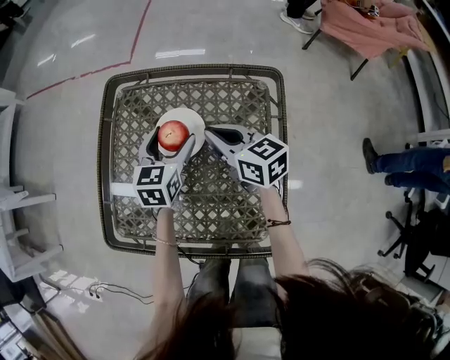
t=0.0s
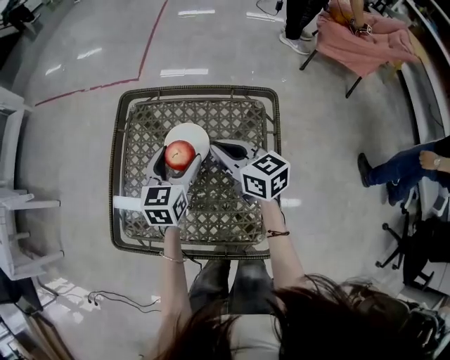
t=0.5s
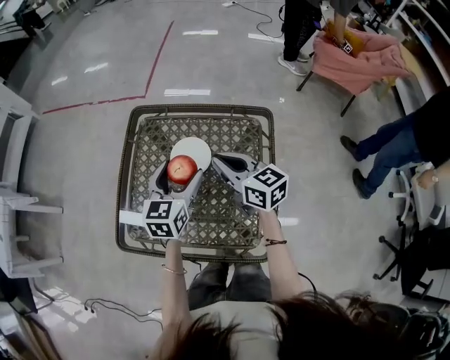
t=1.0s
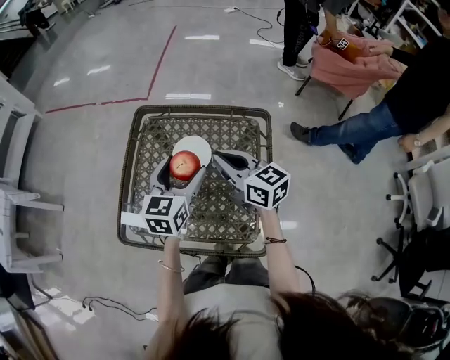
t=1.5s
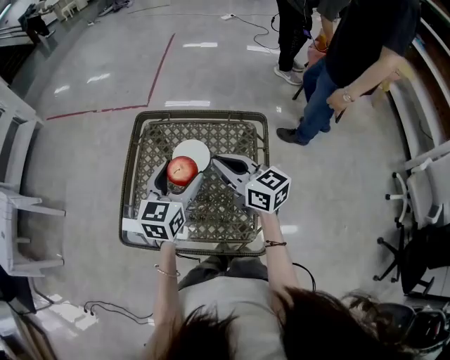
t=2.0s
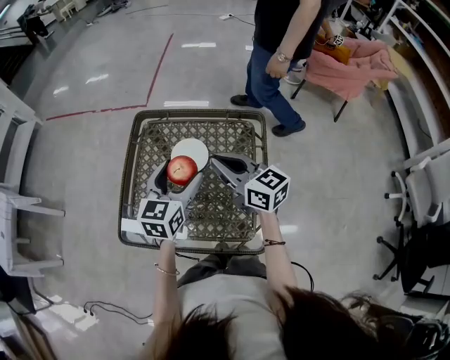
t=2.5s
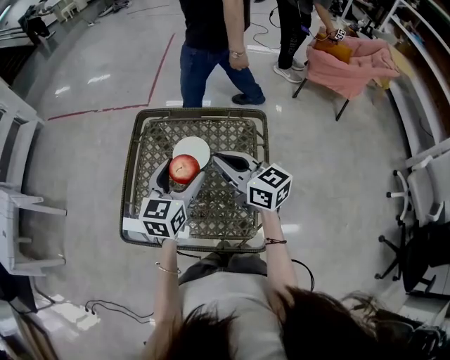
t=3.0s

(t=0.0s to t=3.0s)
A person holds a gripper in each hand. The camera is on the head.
t=0.0s - t=1.5s: Both grippers move upward and backward, approximately 15 cm.
t=1.5s - t=3.0s: The grippers stay close to where they were, moving slightly.

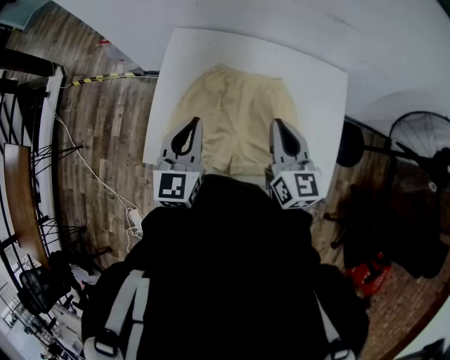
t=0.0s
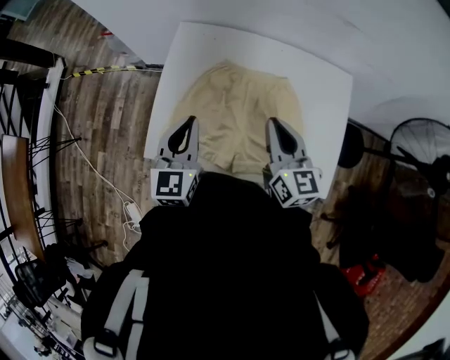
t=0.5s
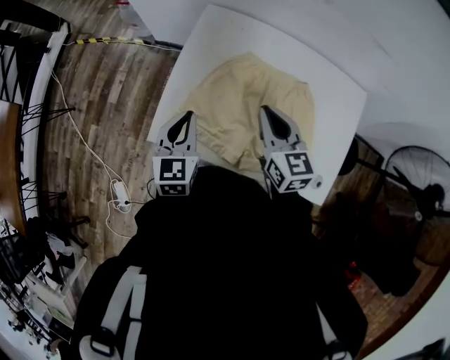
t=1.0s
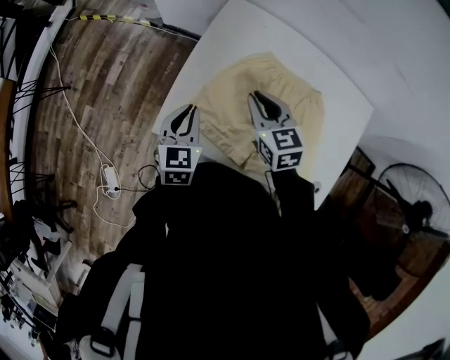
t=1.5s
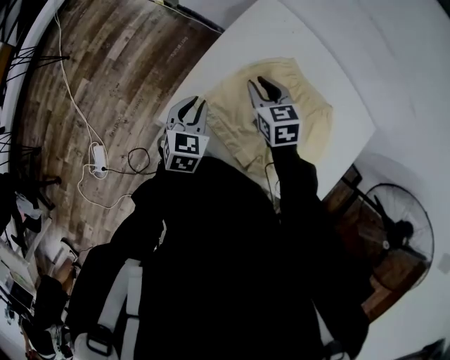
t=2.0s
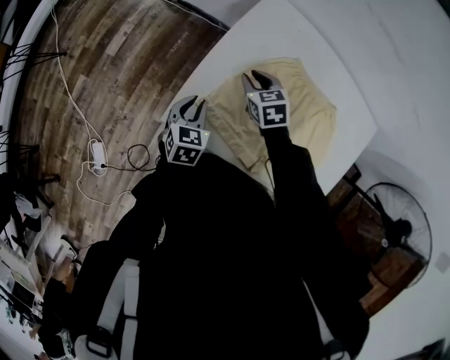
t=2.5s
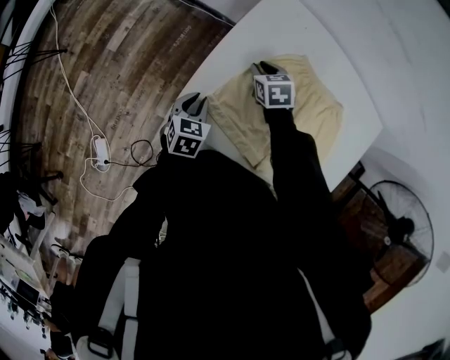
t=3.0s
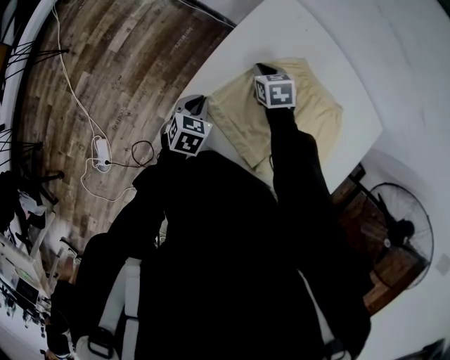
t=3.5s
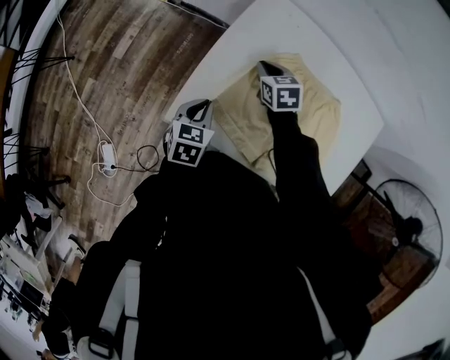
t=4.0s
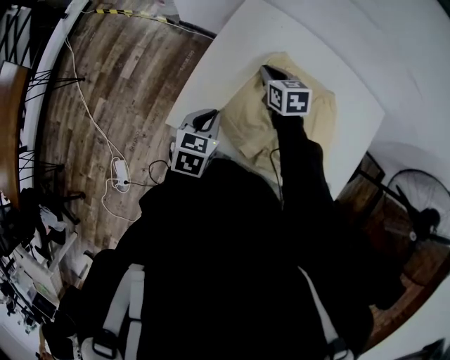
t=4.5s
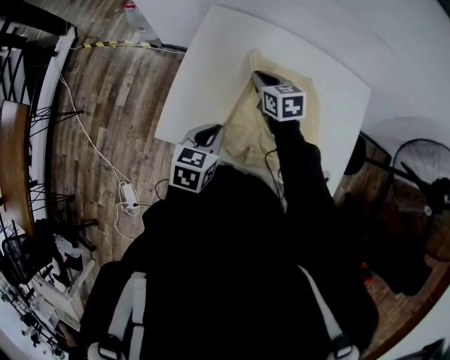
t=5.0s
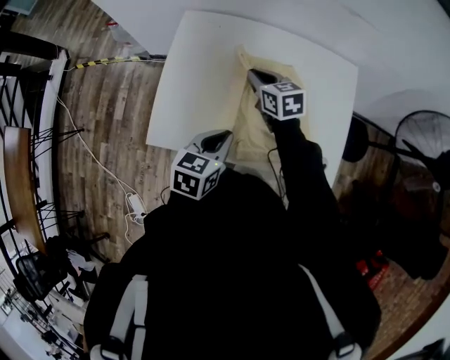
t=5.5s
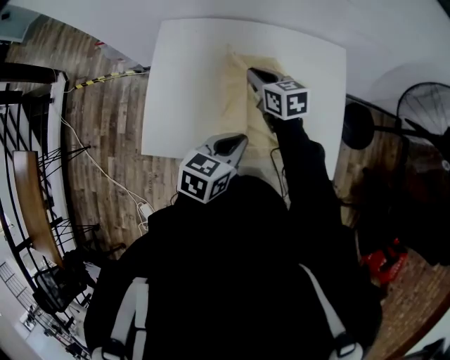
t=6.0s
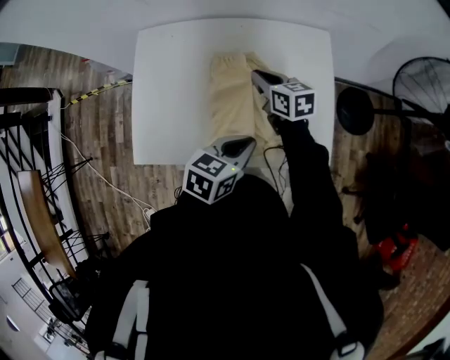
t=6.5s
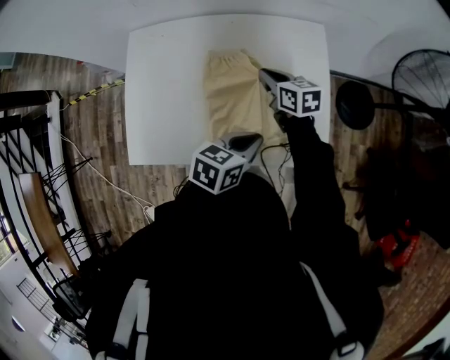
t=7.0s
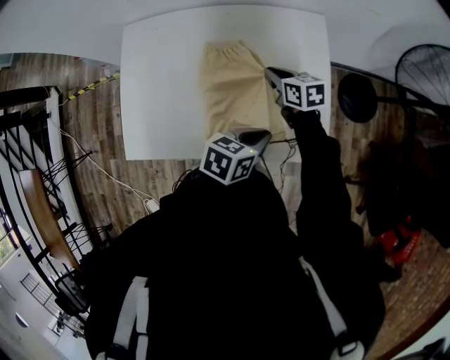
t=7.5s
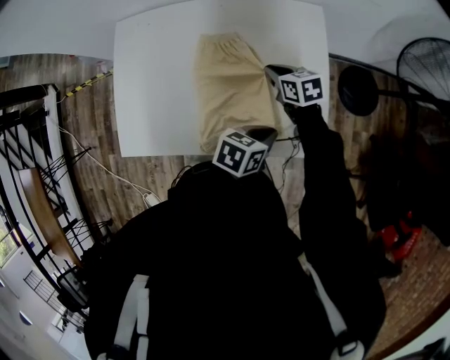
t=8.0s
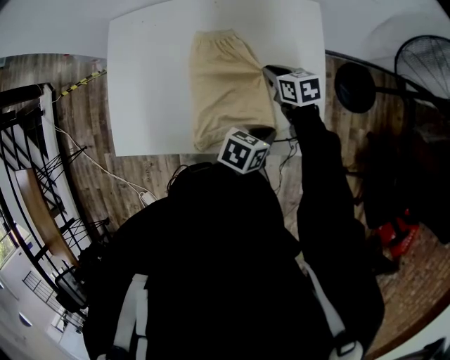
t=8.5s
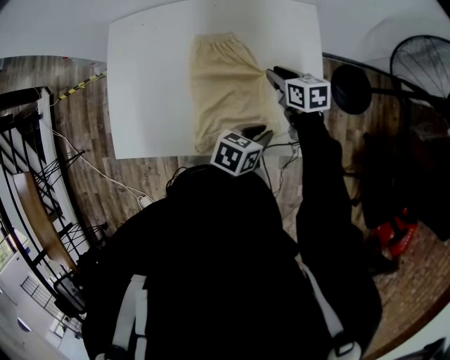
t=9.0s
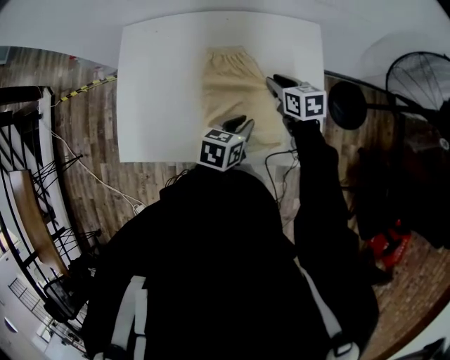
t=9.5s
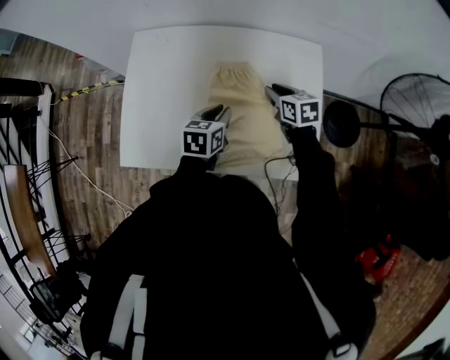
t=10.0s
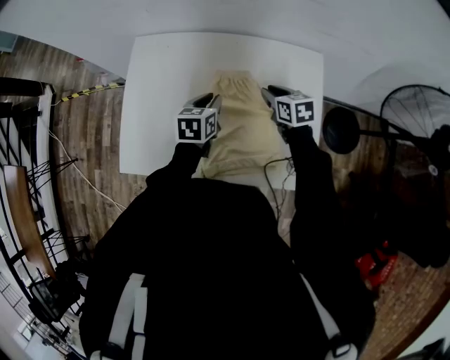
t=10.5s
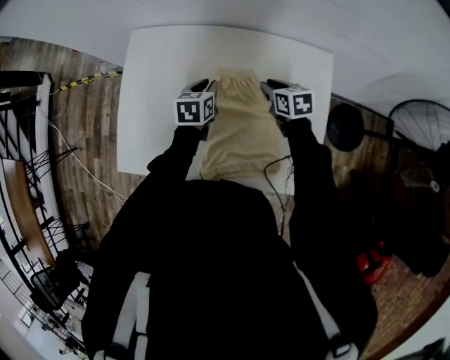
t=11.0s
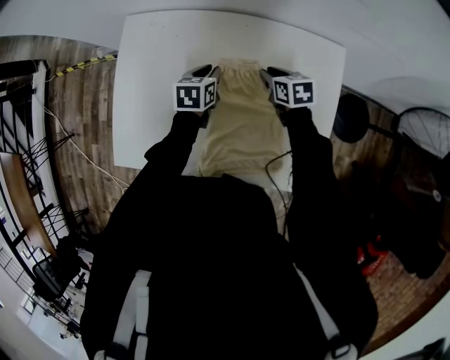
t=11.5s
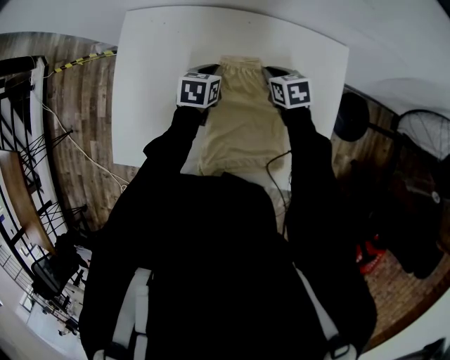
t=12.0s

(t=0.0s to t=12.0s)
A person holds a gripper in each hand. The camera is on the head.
t=0.0s - t=2.0s: The right gripper goes roughly 35 cm to the left, downward and forward, and tips its fingers downward by roughly 40 degrees. The left gripper travels downward and to the left by some 25 cm, and changes its angle by some 30 degrees.
t=2.0s - t=4.0s: The right gripper moves downward, approximately 5 cm, while the left gripper reaches roughly 10 cm downward, then returns.
t=4.0s - t=6.0s: The grippers both shift to the right and upward by about 30 cm. The left gripper changes its angle by approximately 30 degrees; the right gripper swivels approximately 30 degrees.
t=6.0s - t=8.0s: The grippers both shift to the right and downward by approximately 25 cm. The left gripper turns by some 20 degrees.
t=8.0s - t=10.0s: The right gripper moves some 5 cm; the left gripper shifts some 20 cm to the left and forward, and rotates some 30 degrees.
t=10.0s - t=12.0s: Both grippers travel together forward and downward, some 15 cm.

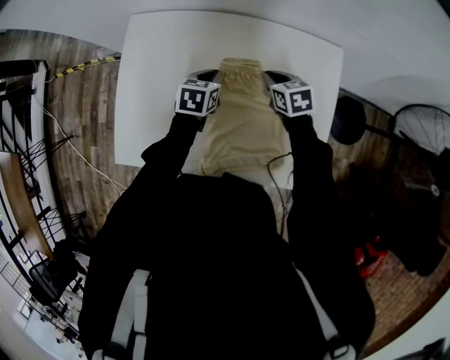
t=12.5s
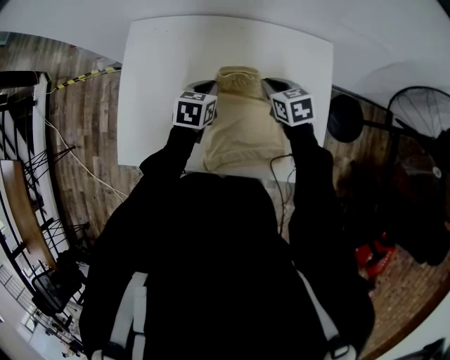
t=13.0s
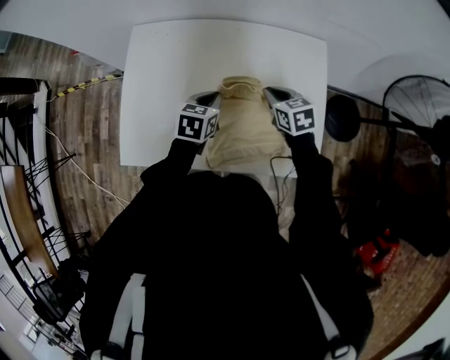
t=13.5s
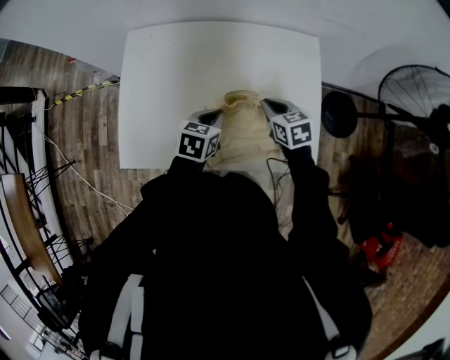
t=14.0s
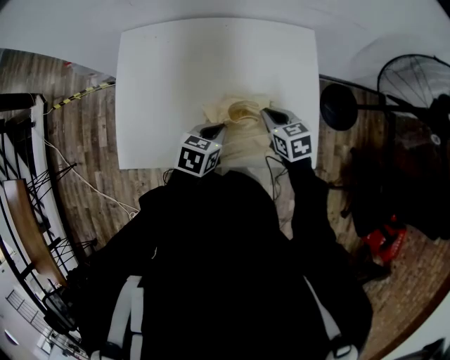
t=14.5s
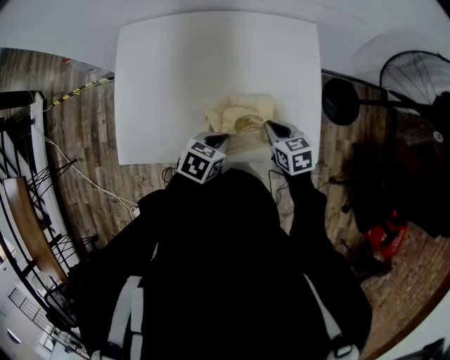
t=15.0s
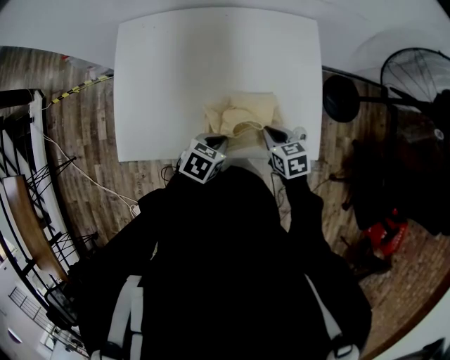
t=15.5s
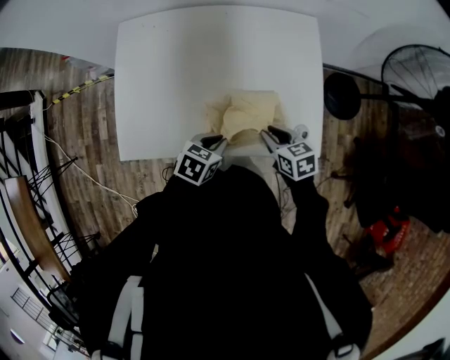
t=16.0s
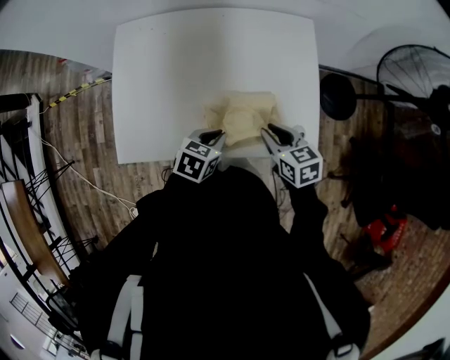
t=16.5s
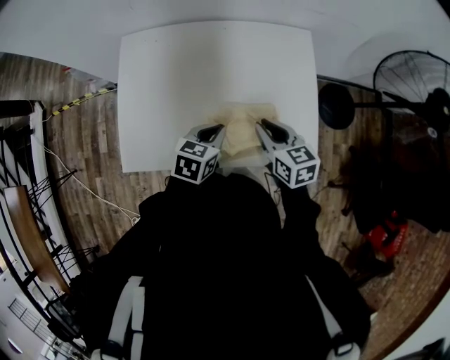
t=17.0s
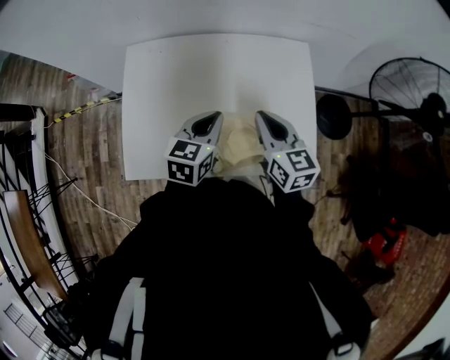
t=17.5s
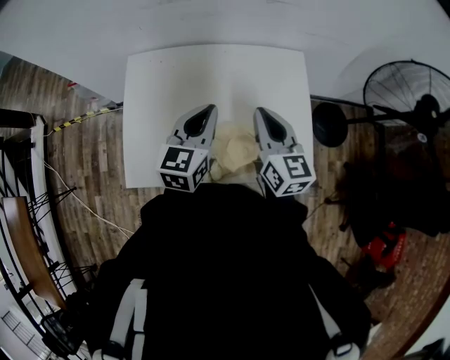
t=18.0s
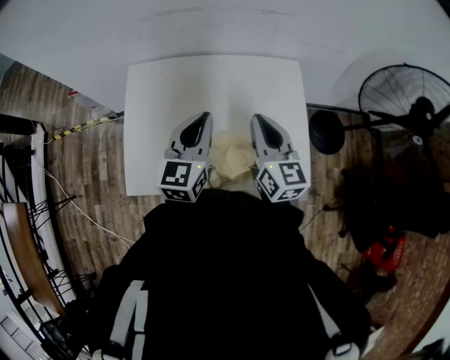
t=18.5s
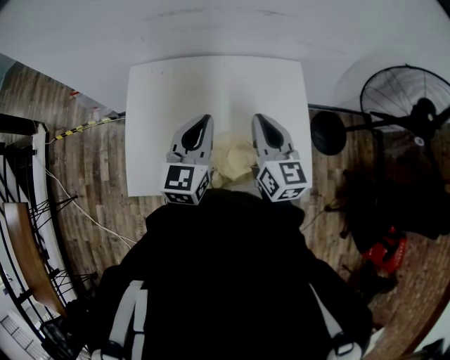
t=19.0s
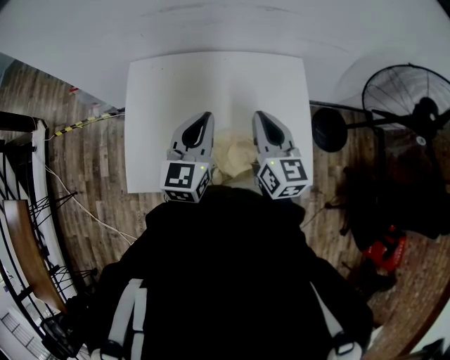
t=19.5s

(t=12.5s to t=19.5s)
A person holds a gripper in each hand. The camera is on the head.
t=12.5s - t=14.5s: Both grippers move backward, roughly 20 cm.
t=14.5s - t=16.0s: Both grippers move backward, roughly 10 cm.
t=16.0s - t=17.5s: The left gripper moves upward and forward, about 20 cm, and turns by some 30 degrees. Meanwhile the right gripper goes about 20 cm upward, forward and to the left, and changes its angle by roughly 30 degrees.
t=17.5s - t=19.5s: The left gripper goes about 10 cm upward, and swivels approximately 20 degrees. Meanwhile the right gripper travels upward by roughly 5 cm.

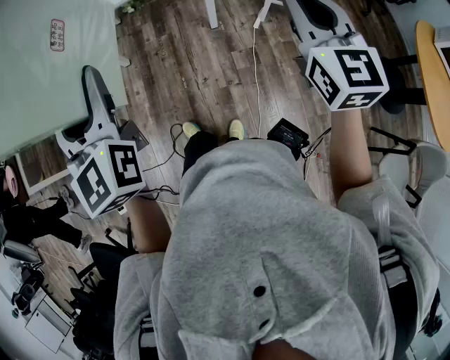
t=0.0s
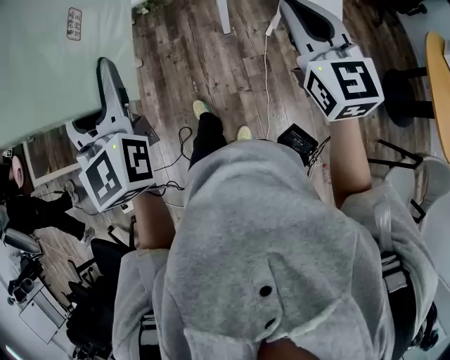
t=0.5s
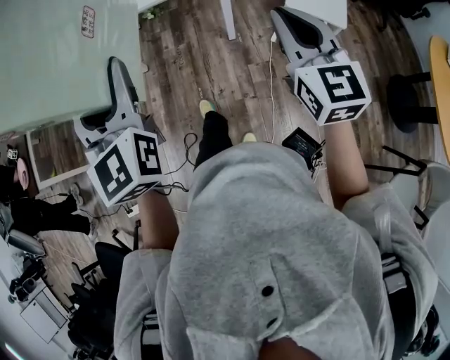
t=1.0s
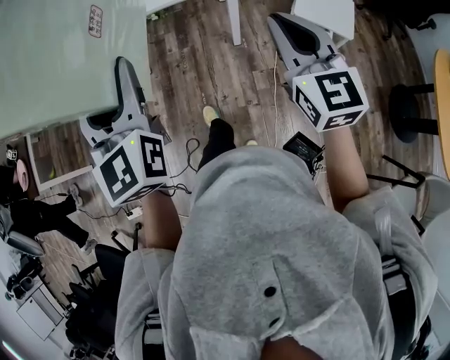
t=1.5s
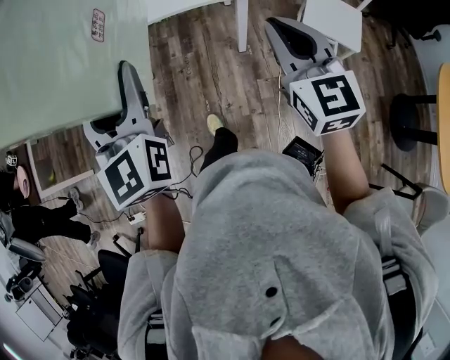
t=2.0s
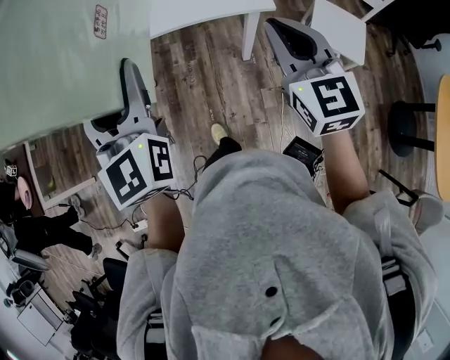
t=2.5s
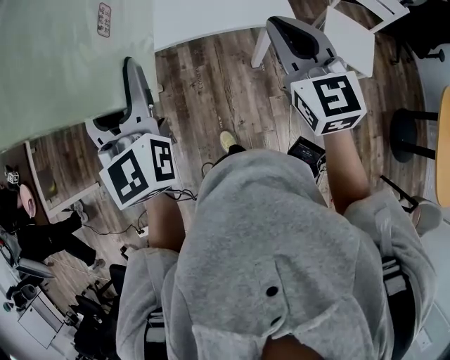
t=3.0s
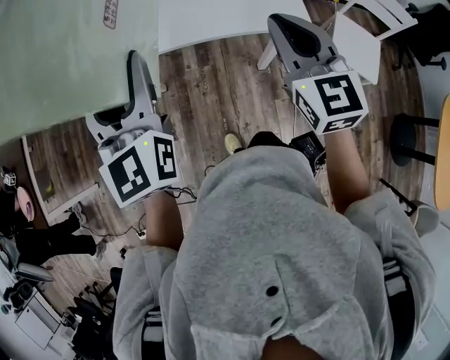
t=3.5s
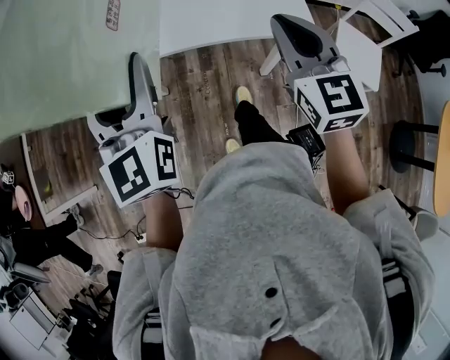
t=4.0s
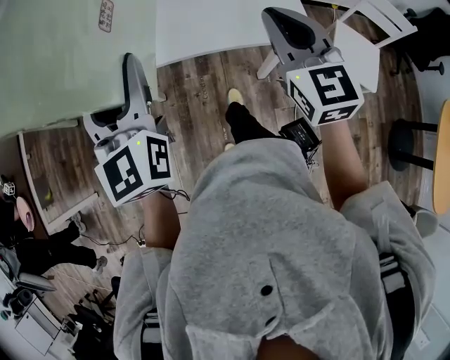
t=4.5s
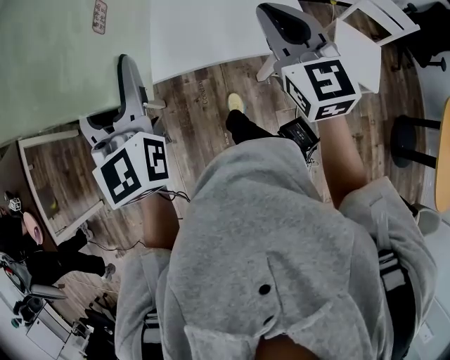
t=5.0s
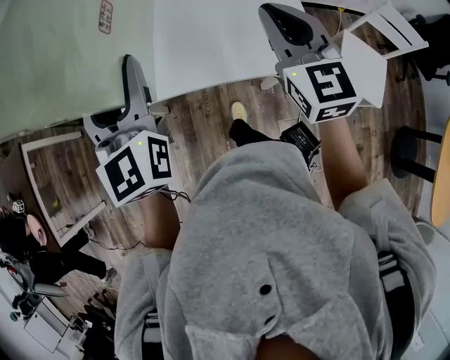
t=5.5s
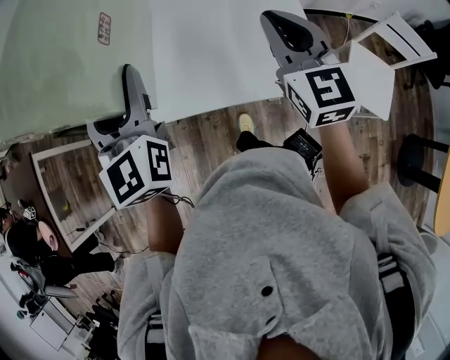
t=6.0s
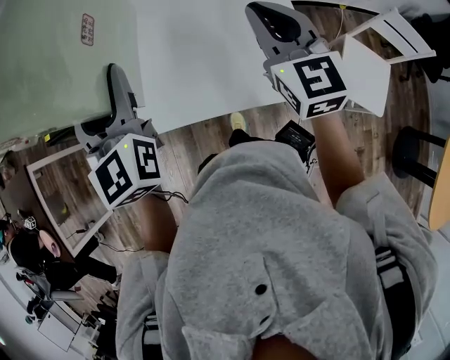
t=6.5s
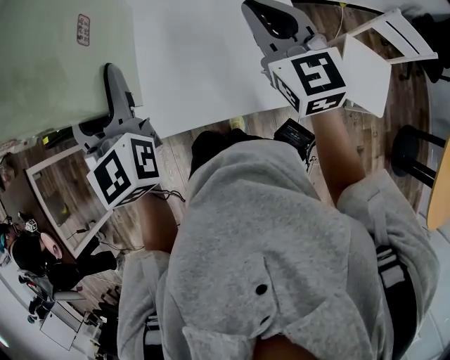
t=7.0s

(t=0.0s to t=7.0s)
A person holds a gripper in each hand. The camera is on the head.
t=0.0s - t=2.0s: The right gripper is displaced forward and to the left by roughly 15 cm, while the left gripper heads forward, covering roughly 15 cm.
t=2.0s - t=3.5s: Both grippers travel together forward and to the left, some 25 cm.
t=3.5s - t=5.0s: Both grippers travel together forward, some 10 cm.
t=5.0s - t=7.0s: The two grippers go approximately 25 cm forward and to the right.
